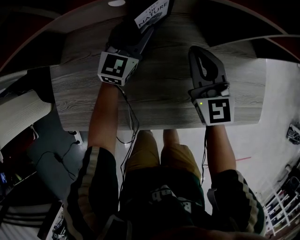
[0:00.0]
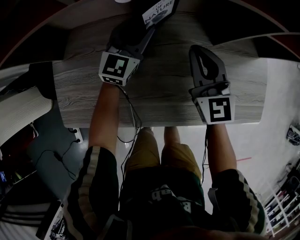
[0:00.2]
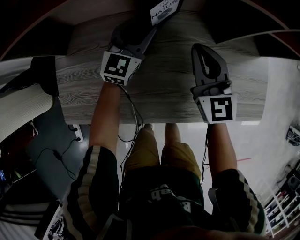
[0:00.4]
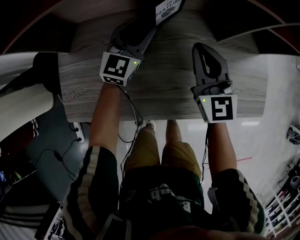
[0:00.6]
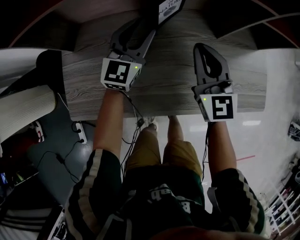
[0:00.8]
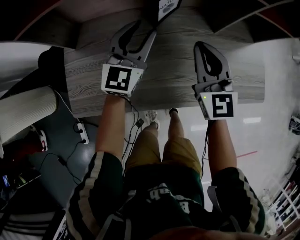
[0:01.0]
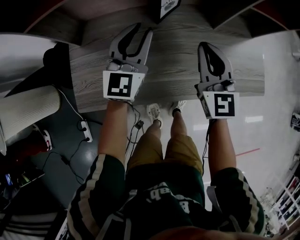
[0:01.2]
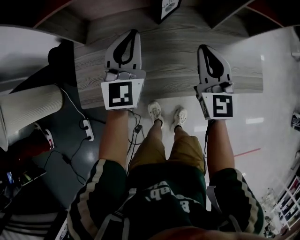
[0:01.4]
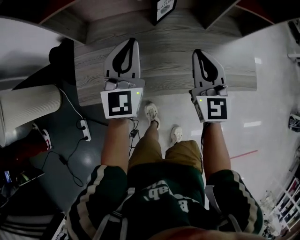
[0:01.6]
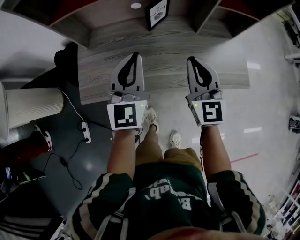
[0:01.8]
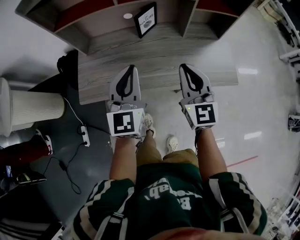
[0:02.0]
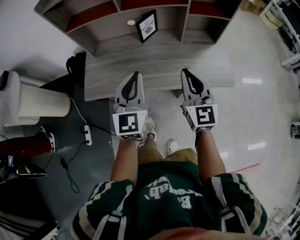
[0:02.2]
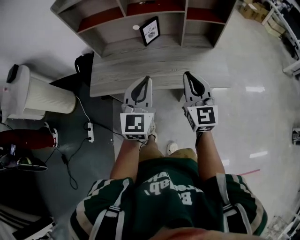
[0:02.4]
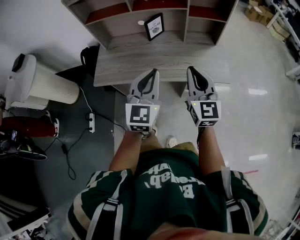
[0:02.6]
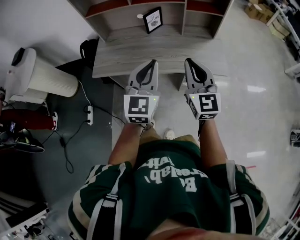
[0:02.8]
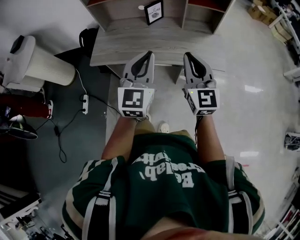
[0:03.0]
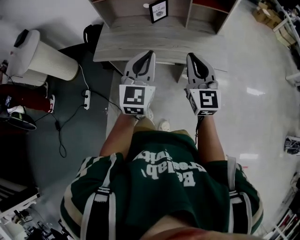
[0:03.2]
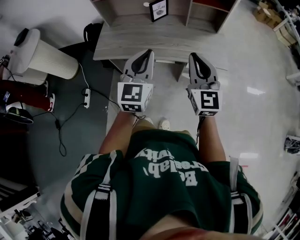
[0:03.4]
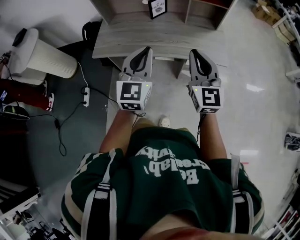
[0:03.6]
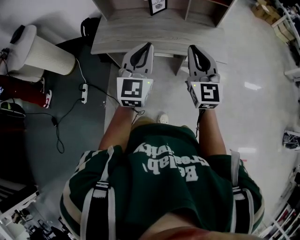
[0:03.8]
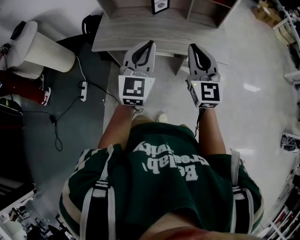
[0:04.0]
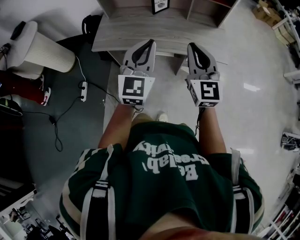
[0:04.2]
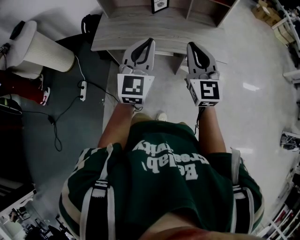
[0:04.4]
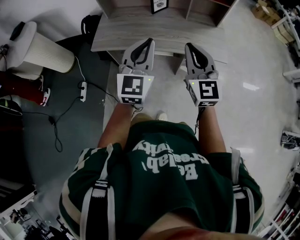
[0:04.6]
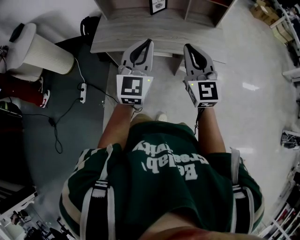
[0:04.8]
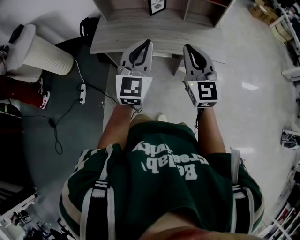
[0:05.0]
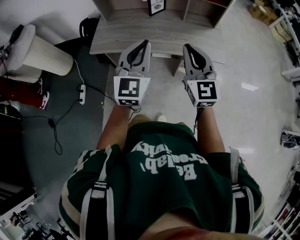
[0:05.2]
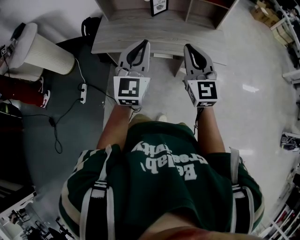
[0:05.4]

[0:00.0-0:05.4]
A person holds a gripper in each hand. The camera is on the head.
0:00.0 to 0:01.4: The right gripper is displaced backward and upward by some 20 cm. The left gripper is displaced backward, upward and to the left by some 30 cm, and closes.
0:01.4 to 0:02.8: The right gripper shifts approximately 40 cm backward, upward and to the right. The left gripper goes roughly 50 cm backward, to the right and upward.
0:02.8 to 0:04.0: Both grippers move backward, about 5 cm.
0:04.0 to 0:05.4: The grippers move only a little.

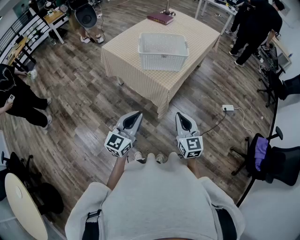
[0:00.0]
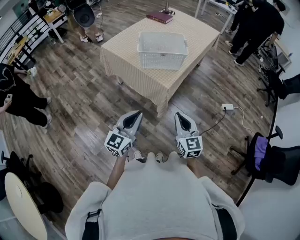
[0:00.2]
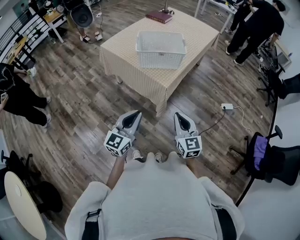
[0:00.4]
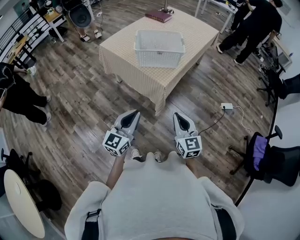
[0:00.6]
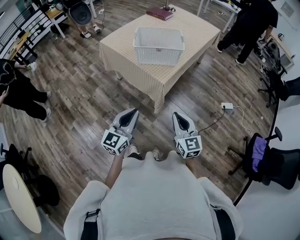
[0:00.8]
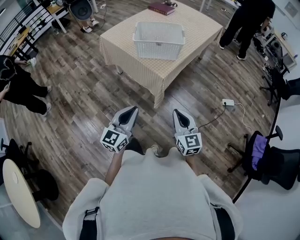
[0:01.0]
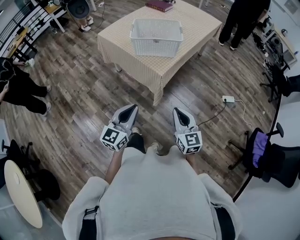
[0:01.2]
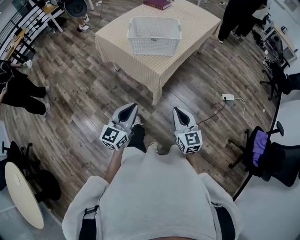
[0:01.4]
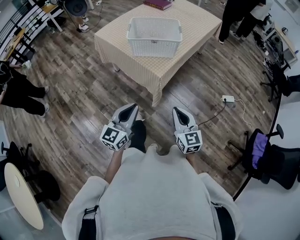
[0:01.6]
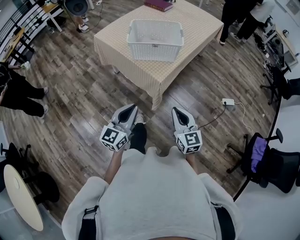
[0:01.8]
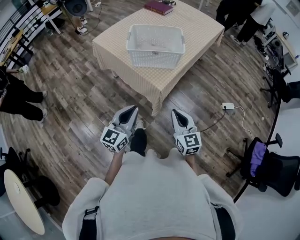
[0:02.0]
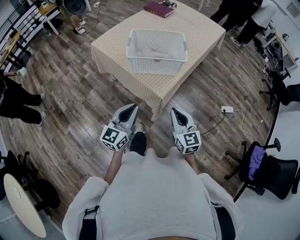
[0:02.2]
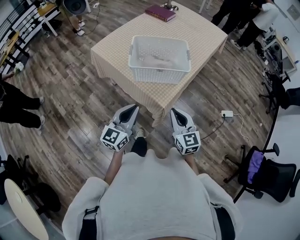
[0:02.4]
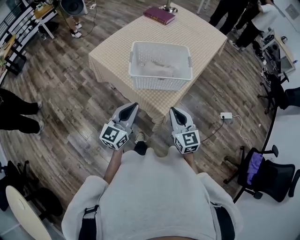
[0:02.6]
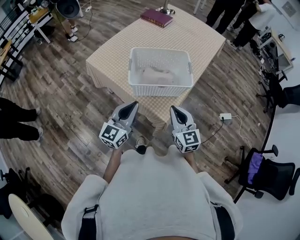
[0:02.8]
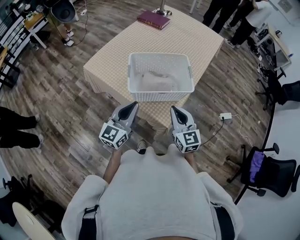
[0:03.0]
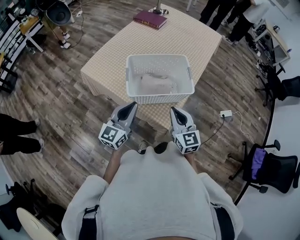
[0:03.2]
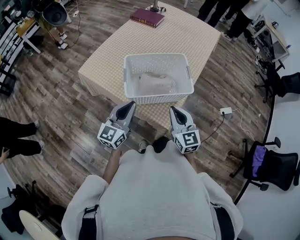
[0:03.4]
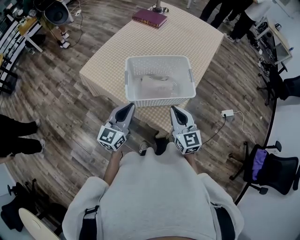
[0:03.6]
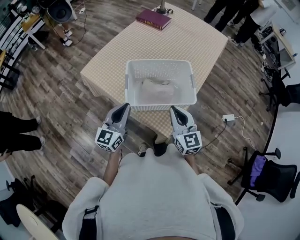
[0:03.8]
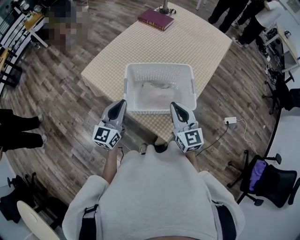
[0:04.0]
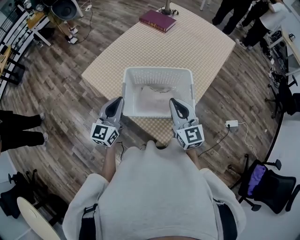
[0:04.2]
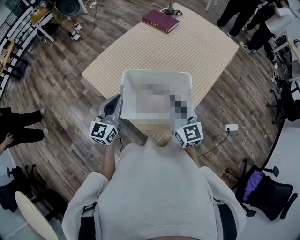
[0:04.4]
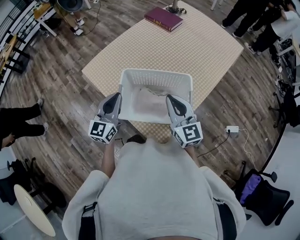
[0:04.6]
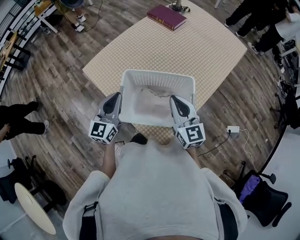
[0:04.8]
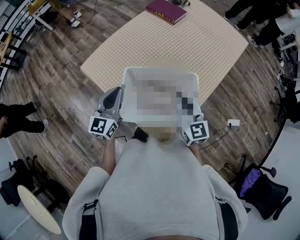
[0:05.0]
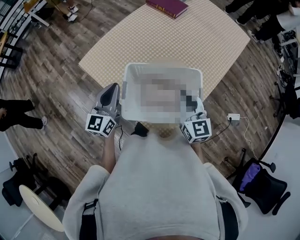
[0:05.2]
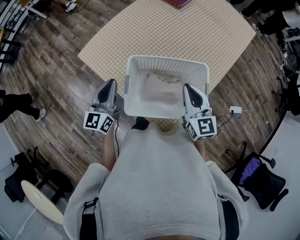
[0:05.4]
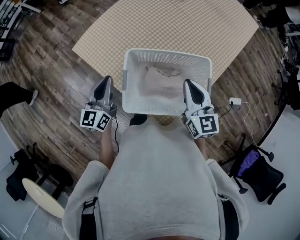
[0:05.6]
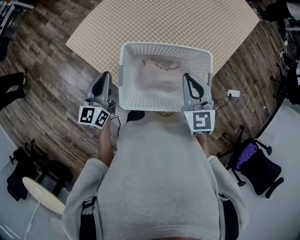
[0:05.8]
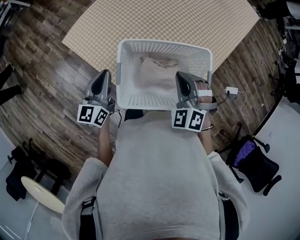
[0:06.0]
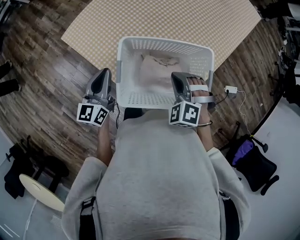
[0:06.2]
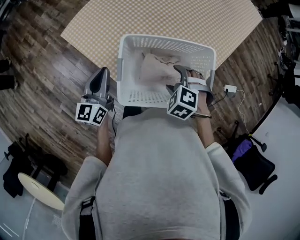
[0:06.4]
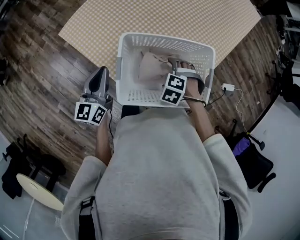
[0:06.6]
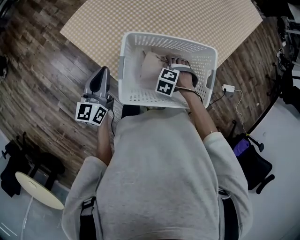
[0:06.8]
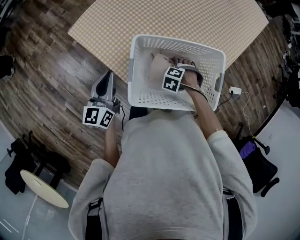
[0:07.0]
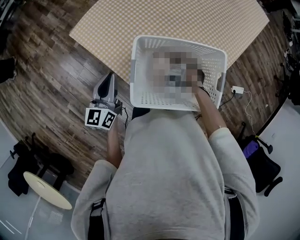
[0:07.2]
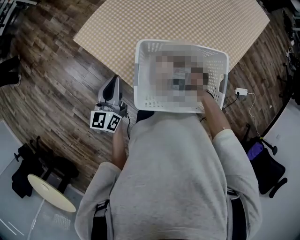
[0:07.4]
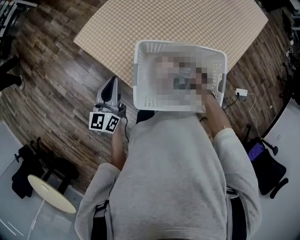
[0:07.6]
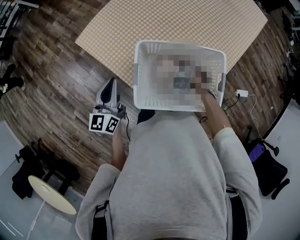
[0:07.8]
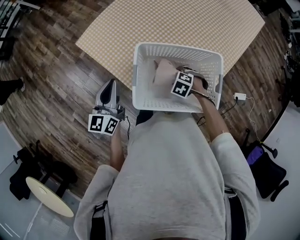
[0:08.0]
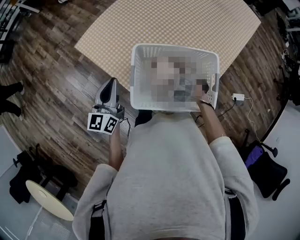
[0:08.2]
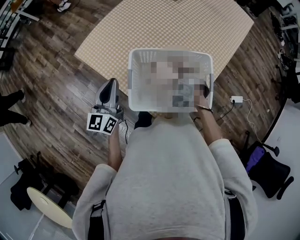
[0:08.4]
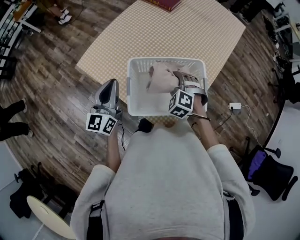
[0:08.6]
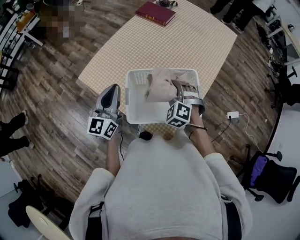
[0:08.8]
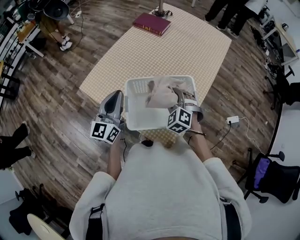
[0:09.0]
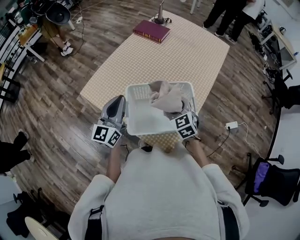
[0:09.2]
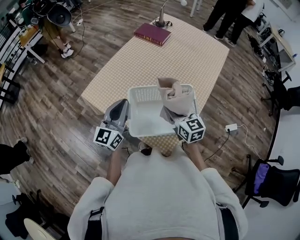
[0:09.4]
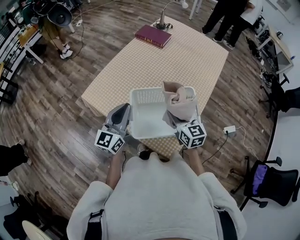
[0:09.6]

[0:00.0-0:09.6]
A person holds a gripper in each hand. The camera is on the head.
0:00.0 to 0:01.6: The grippers both shift to the right by some 5 cm.
0:01.6 to 0:03.2: Both grippers move forward, roughly 35 cm.
0:03.2 to 0:04.8: Both grippers travel together forward, approximately 20 cm. The left gripper swivels some 20 degrees.
0:04.8 to 0:06.4: The right gripper shifts approximately 20 cm downward, points its fingers approximately 60 degrees further downward, and opens its fingers. Meanwhile the left gripper shifts some 10 cm downward and to the left.
0:06.4 to 0:08.0: The right gripper shifts roughly 10 cm downward, and opens and closes again.
0:08.0 to 0:09.6: The right gripper moves upward, roughly 25 cm, and points its fingers roughly 60 degrees further upward; the left gripper shifts approximately 10 cm upward, and changes its angle by roughly 20 degrees.

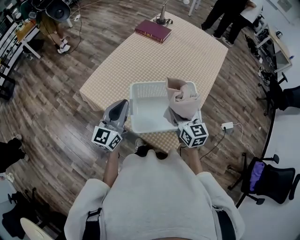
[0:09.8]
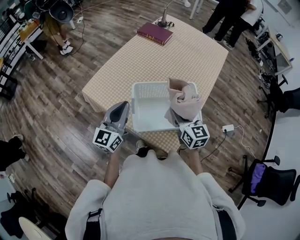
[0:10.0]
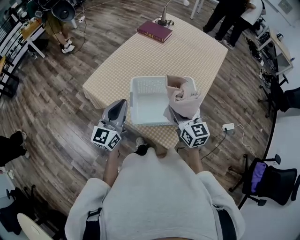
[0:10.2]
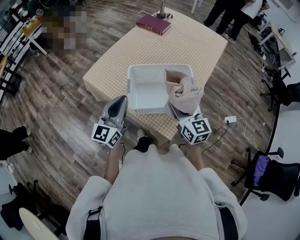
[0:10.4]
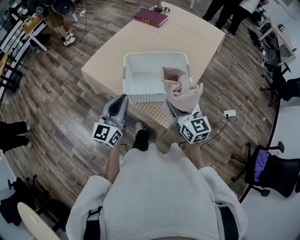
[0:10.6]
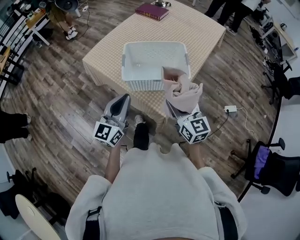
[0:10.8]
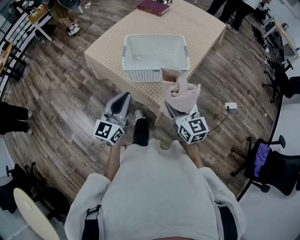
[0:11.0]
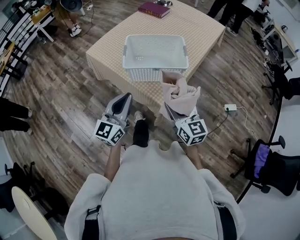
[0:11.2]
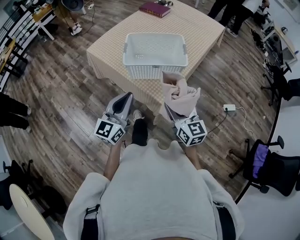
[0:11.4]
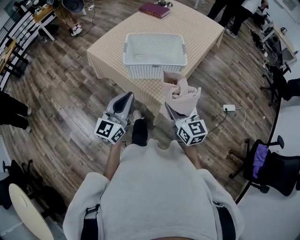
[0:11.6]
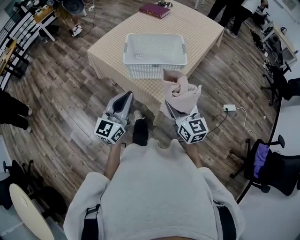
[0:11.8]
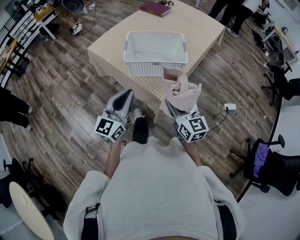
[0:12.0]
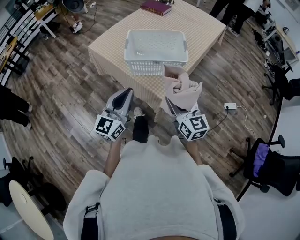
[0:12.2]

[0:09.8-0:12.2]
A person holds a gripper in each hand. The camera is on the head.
0:09.8 to 0:11.0: Both grippers move backward, about 30 cm.
0:11.0 to 0:12.2: The left gripper shifts about 5 cm backward.

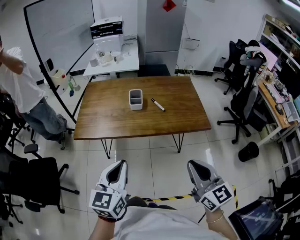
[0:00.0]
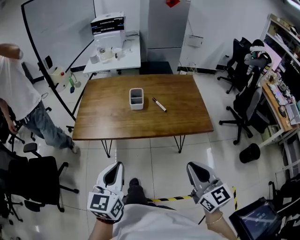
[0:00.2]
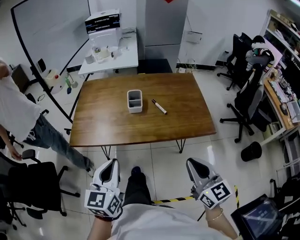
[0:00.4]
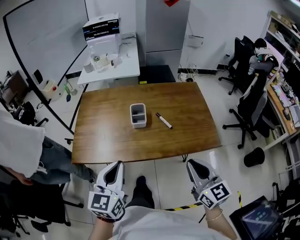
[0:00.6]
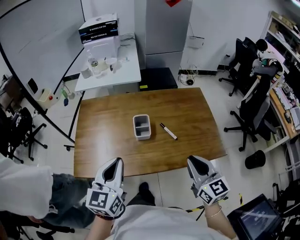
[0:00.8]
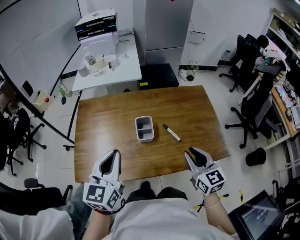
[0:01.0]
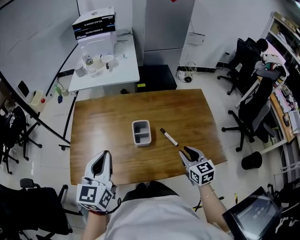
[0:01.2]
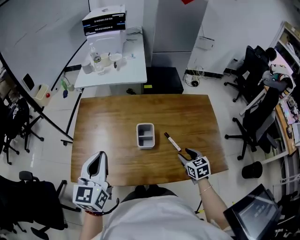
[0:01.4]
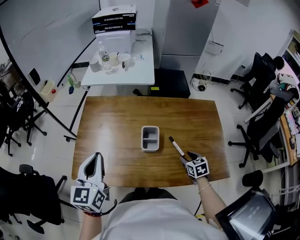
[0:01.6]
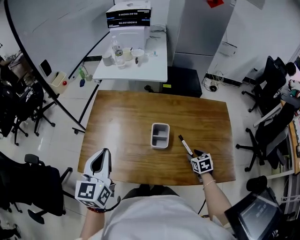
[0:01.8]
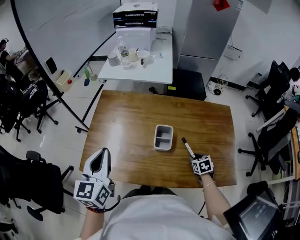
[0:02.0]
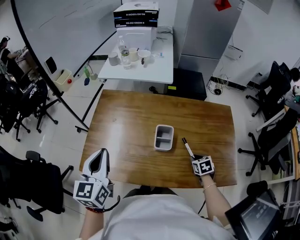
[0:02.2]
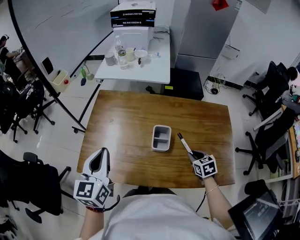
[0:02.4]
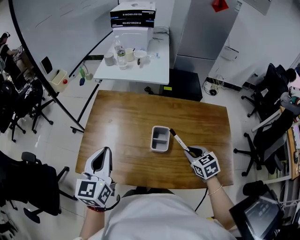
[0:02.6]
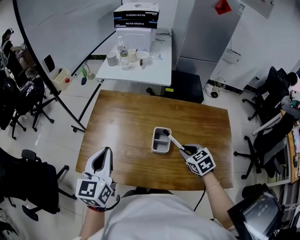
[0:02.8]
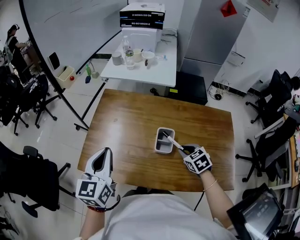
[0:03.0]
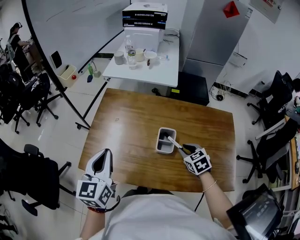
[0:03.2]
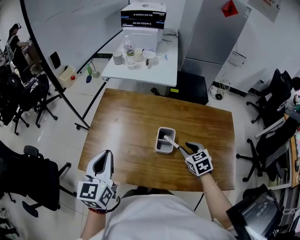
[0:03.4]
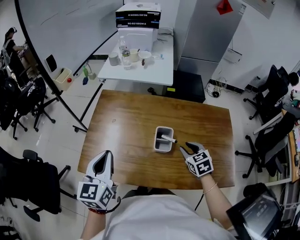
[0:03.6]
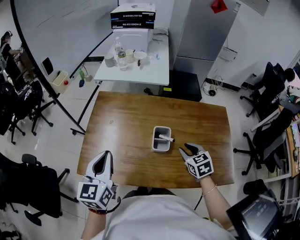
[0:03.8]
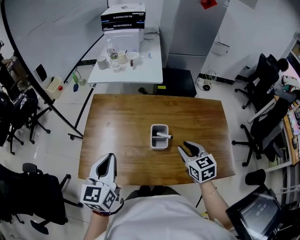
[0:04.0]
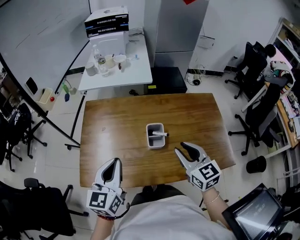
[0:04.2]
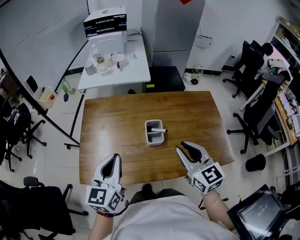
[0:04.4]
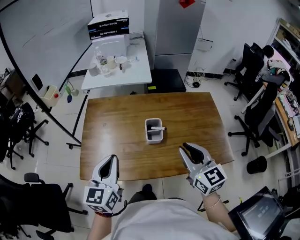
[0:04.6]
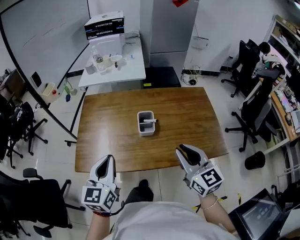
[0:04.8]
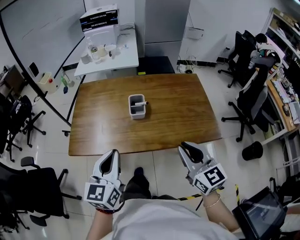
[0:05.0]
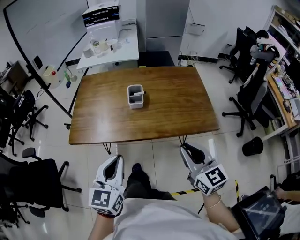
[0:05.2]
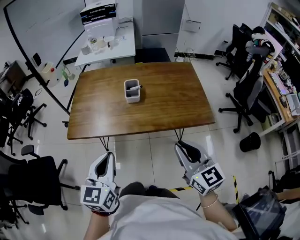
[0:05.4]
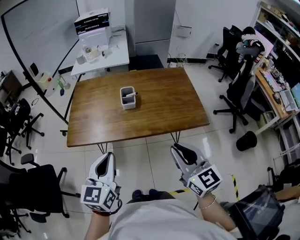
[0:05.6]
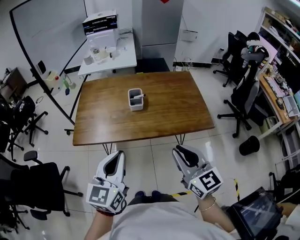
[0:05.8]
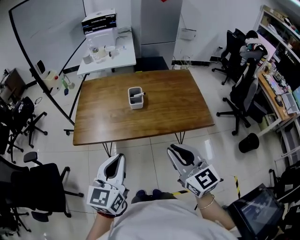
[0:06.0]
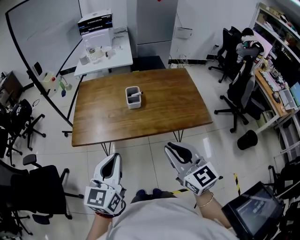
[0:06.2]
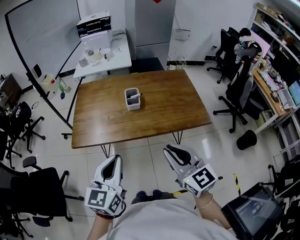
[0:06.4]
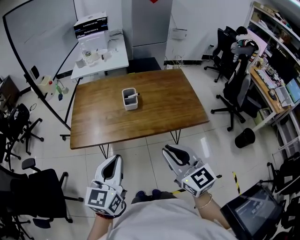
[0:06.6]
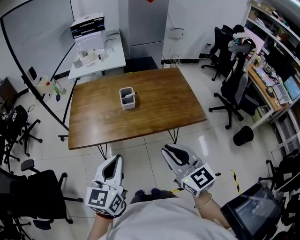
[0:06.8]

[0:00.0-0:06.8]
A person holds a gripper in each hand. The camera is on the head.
0:00.0 to 0:01.4: The left gripper heads forward, covering roughly 40 cm, while the right gripper moves forward and downward, roughly 50 cm, angles its fingers downward, by roughly 40 degrees, and opens up.
0:01.4 to 0:02.8: The right gripper goes roughly 10 cm to the left and forward, turns by some 30 degrees, and closes its fingers.
0:02.8 to 0:04.0: The right gripper moves upward, approximately 5 cm, and changes its angle by some 20 degrees.
0:04.0 to 0:05.4: Both grippers move backward, roughly 30 cm. The right gripper changes its angle by approximately 20 degrees.
0:05.4 to 0:06.8: The right gripper heads to the left, covering roughly 5 cm.
